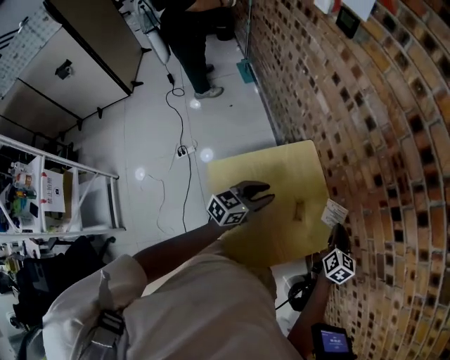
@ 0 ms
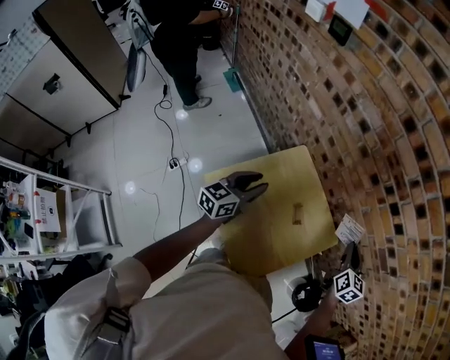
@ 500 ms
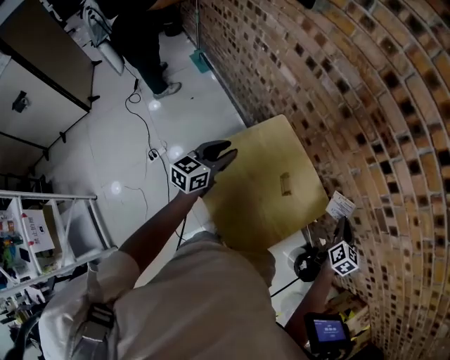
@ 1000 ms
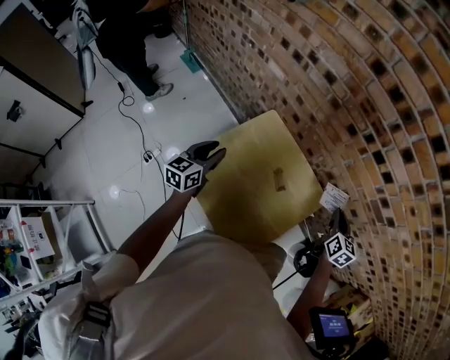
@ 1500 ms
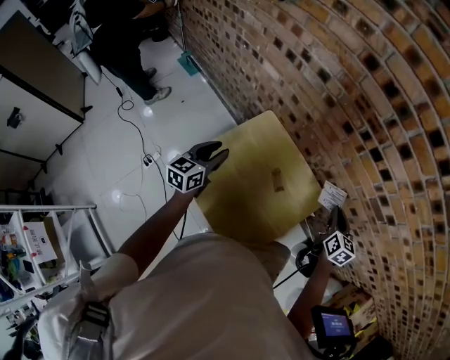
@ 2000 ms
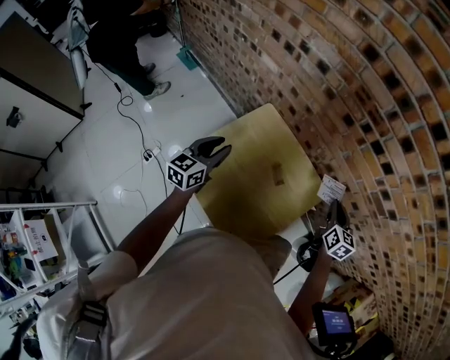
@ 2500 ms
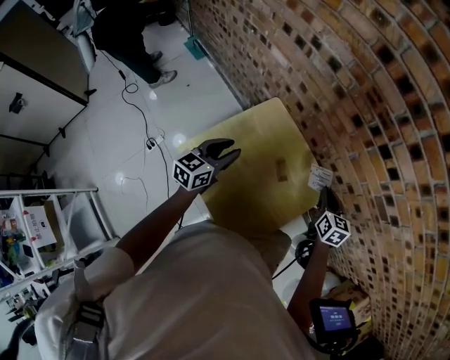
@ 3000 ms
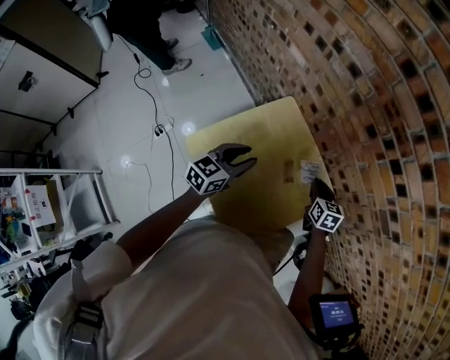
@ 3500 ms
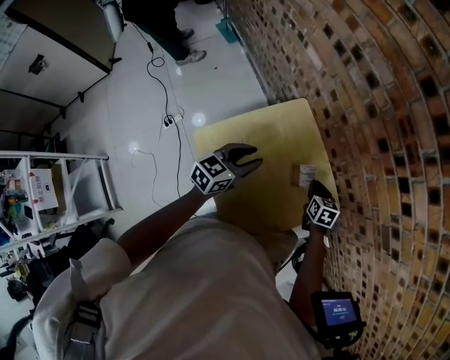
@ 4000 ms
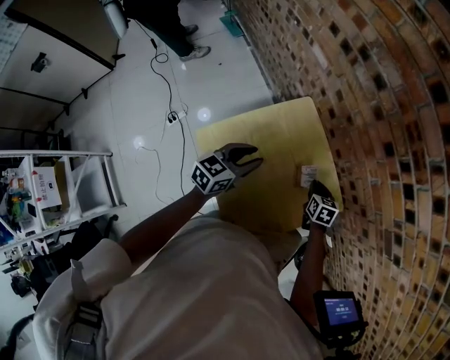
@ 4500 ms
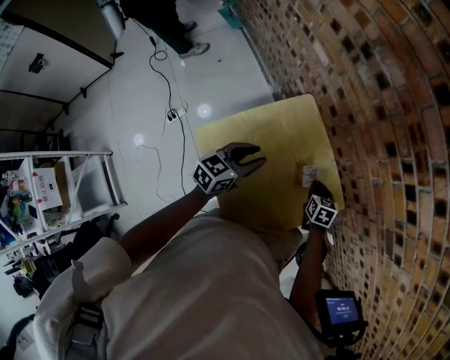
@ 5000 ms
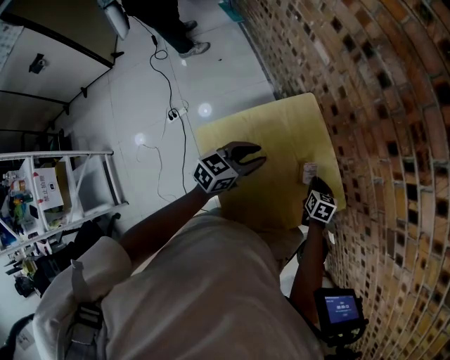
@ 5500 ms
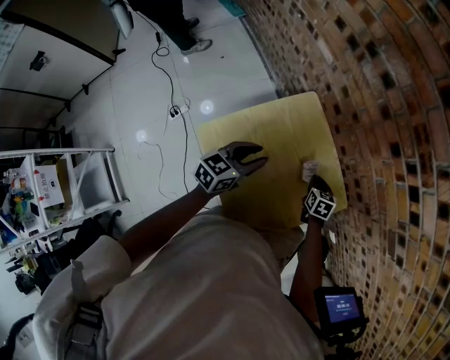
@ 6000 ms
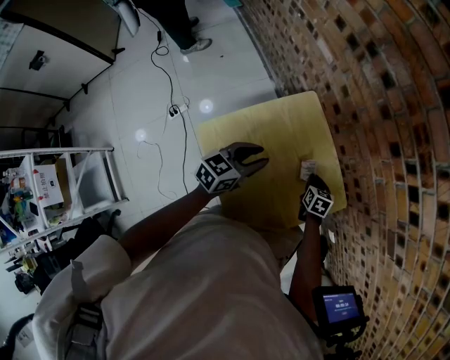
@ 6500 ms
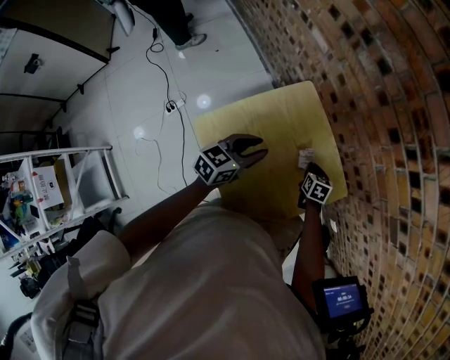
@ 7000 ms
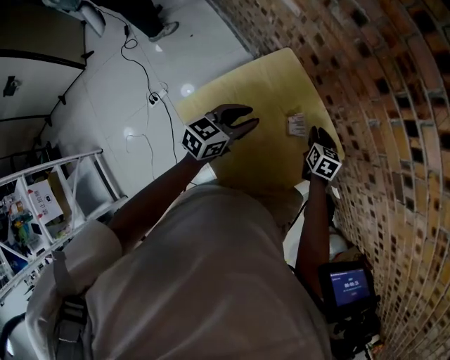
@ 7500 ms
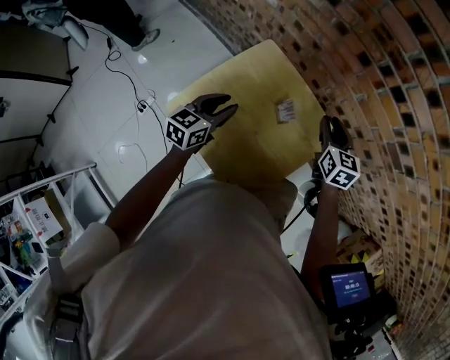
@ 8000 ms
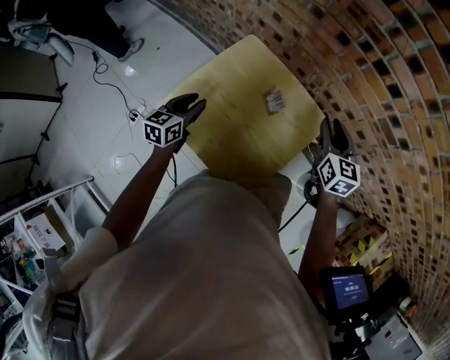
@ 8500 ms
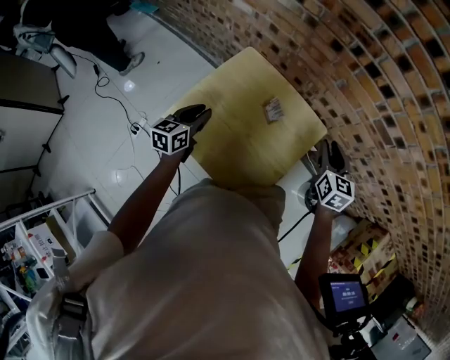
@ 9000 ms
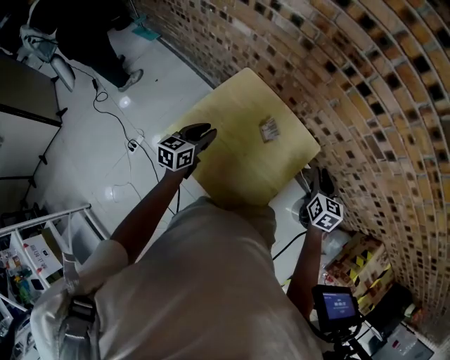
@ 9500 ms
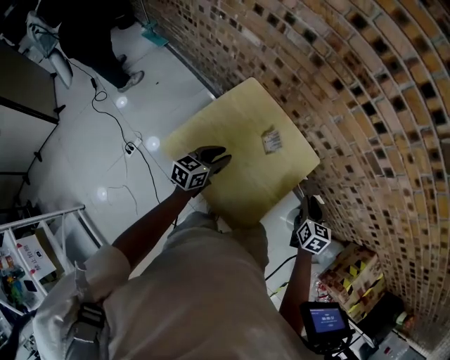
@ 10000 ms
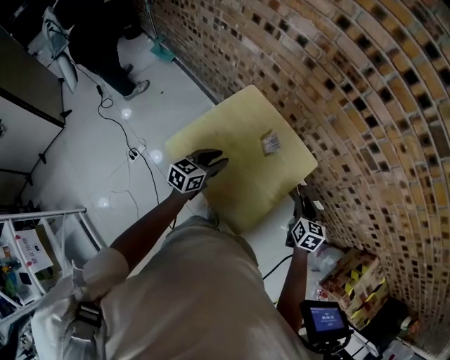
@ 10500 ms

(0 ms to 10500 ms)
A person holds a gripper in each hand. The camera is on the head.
0 ms - 2000 ms: The right gripper moves to the right, about 10 cm; the left gripper is displaced to the left by approximately 10 cm.
2000 ms - 4000 ms: The left gripper shifts roughly 5 cm to the right; the right gripper heads to the left and downward, covering roughly 20 cm, and turns by about 30 degrees.
4000 ms - 6500 ms: The right gripper is displaced downward by approximately 5 cm.
6500 ms - 8500 ms: The left gripper heads to the left, covering about 5 cm. Meanwhile the right gripper shifts approximately 25 cm upward, turns by approximately 30 degrees, and opens its fingers.
8500 ms - 10500 ms: The right gripper goes roughly 15 cm backward and downward. The left gripper is displaced to the right and backward by approximately 10 cm.

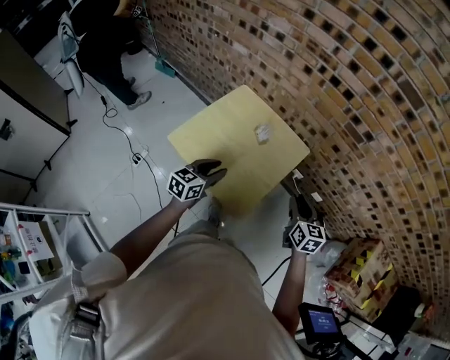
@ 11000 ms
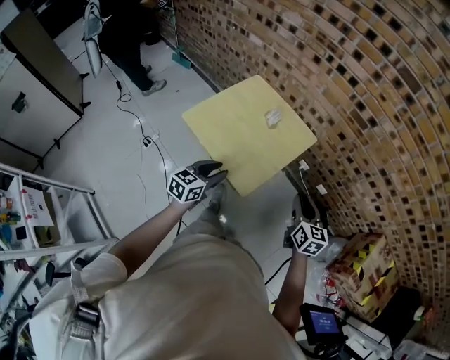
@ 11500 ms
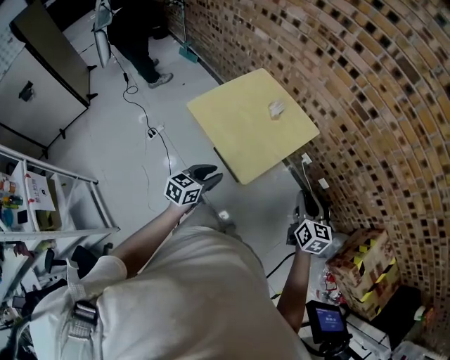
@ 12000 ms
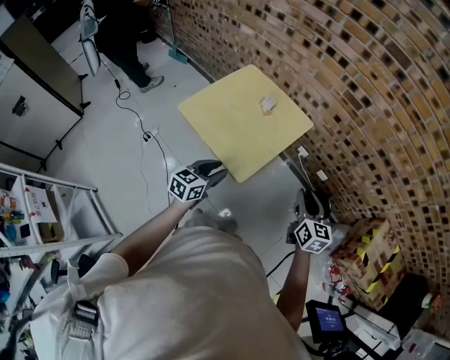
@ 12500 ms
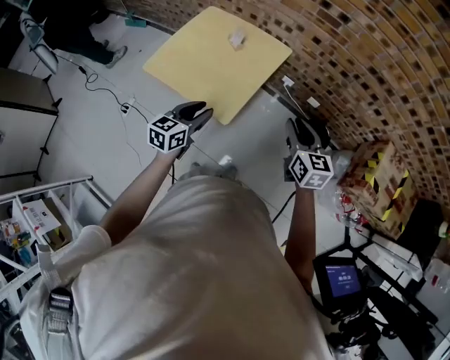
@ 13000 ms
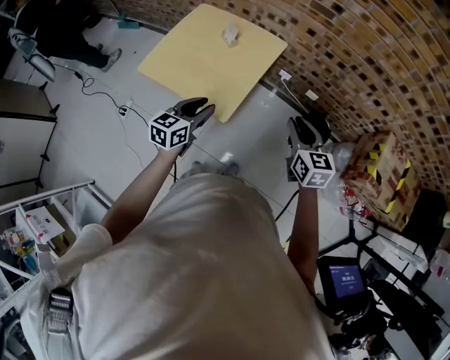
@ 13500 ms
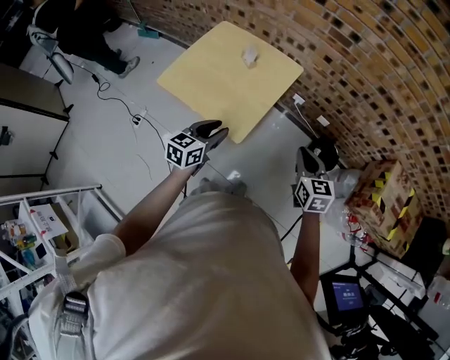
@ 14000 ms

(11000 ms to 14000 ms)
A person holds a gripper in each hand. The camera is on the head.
11000 ms - 12500 ms: The two grippers go approximately 15 cm backward and to the right.
12500 ms - 14000 ms: The right gripper closes up.

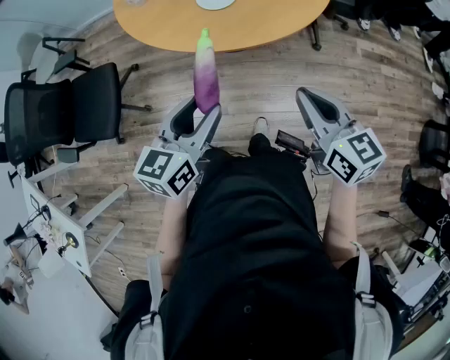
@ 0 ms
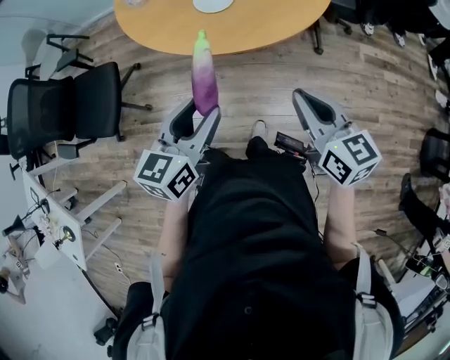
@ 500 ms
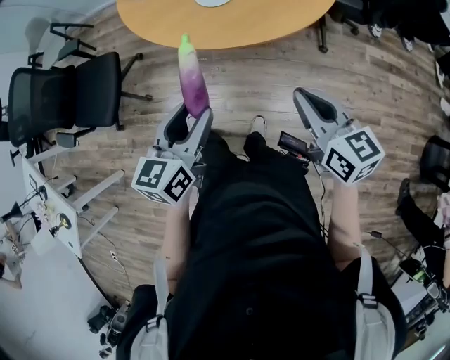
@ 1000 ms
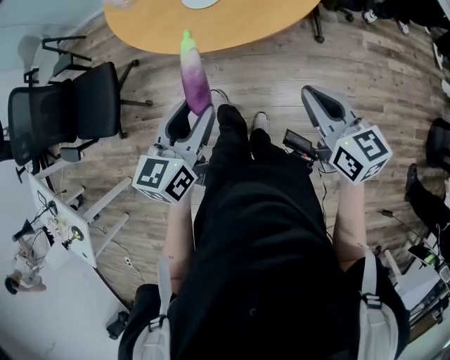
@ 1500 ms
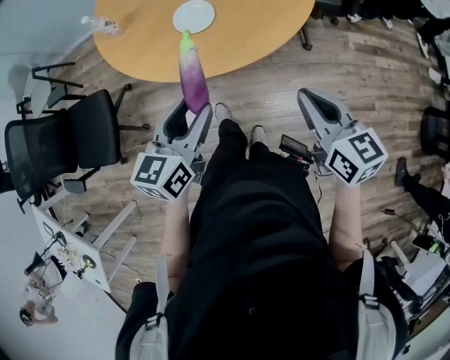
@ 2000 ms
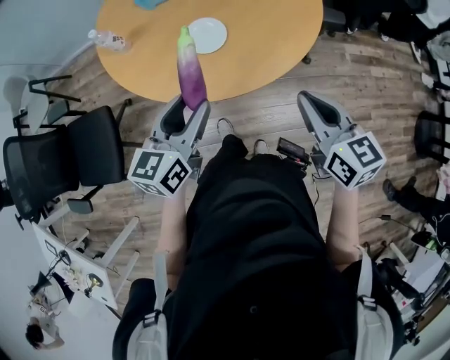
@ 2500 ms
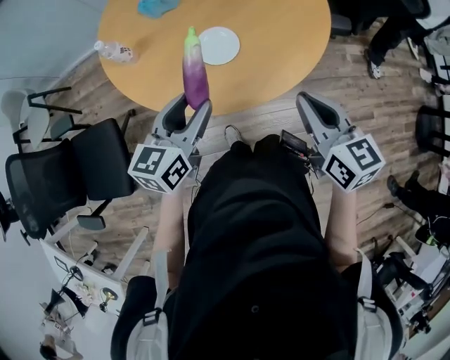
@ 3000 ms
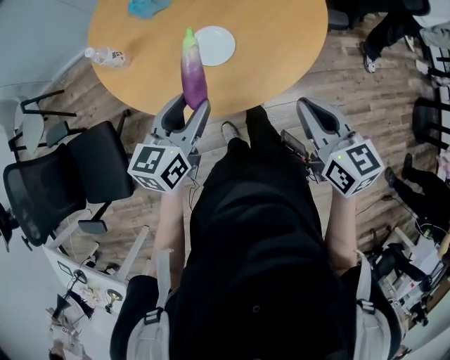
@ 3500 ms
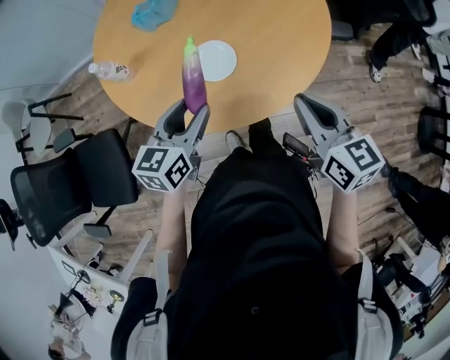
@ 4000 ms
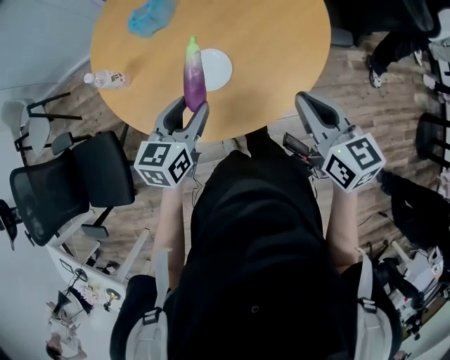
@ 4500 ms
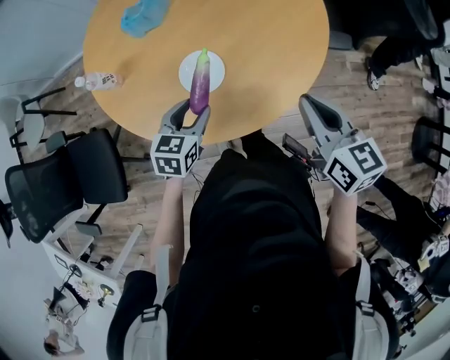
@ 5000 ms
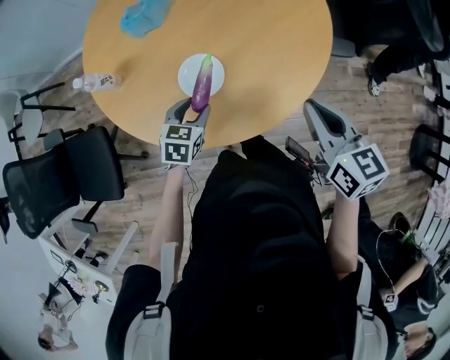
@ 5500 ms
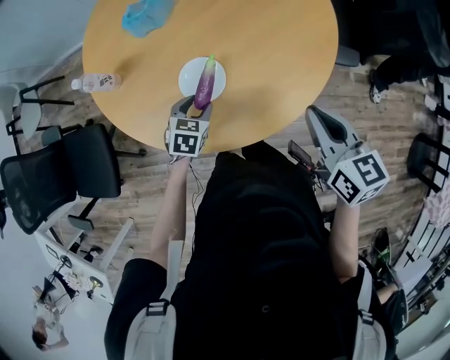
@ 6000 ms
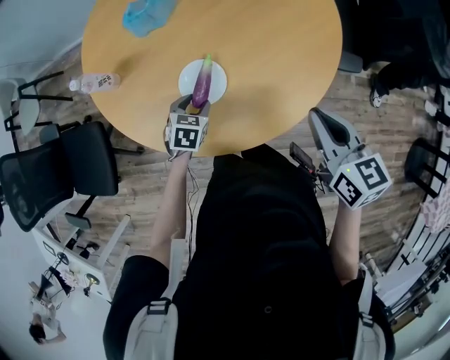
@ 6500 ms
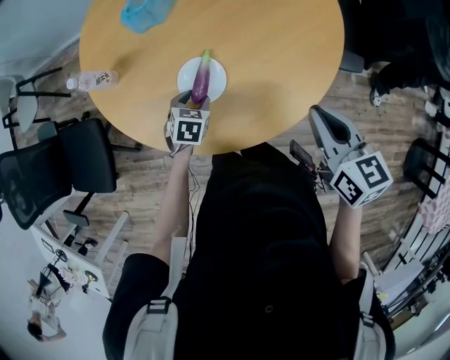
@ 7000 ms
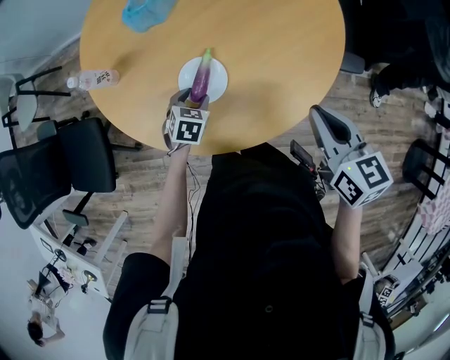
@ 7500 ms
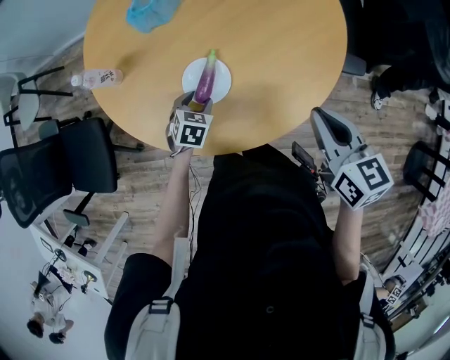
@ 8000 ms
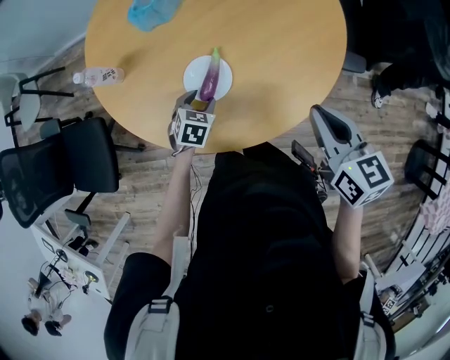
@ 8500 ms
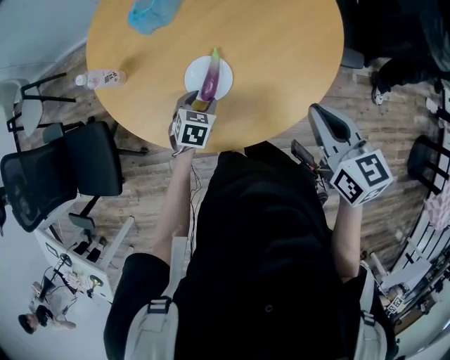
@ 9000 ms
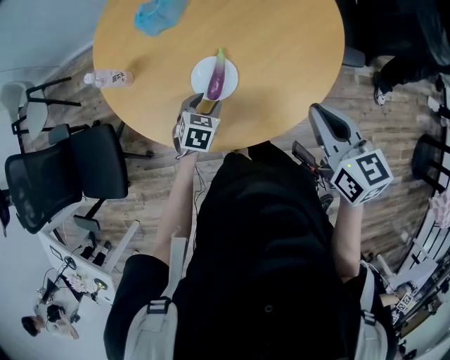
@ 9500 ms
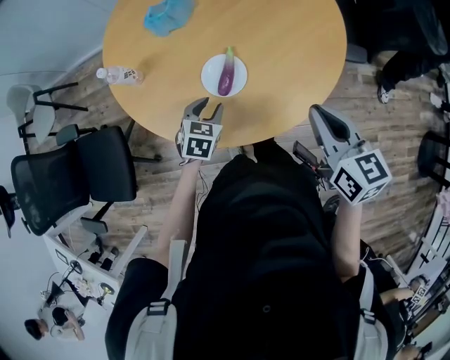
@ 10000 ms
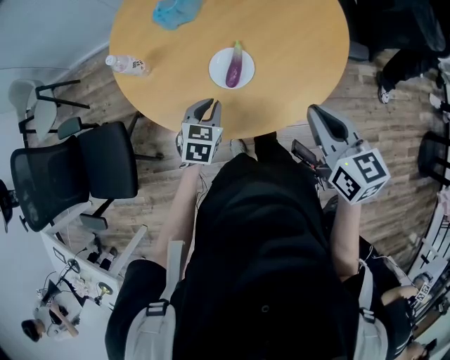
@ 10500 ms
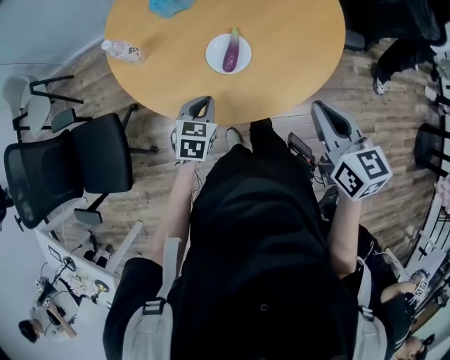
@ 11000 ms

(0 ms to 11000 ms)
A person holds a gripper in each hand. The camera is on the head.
0 ms - 2000 ms: The left gripper shifts approximately 10 cm forward. Meanwhile the right gripper moves forward and to the right, approximately 10 cm.
2000 ms - 3500 ms: The right gripper shifts roughly 15 cm to the left and forward. The left gripper heads forward and to the left, covering approximately 20 cm.
3500 ms - 5500 ms: The left gripper heads downward, forward and to the right, covering some 20 cm, and changes its angle by about 30 degrees, while the right gripper heads forward and to the right, covering roughly 20 cm.
5500 ms - 7500 ms: The left gripper is displaced downward by approximately 5 cm.
7500 ms - 9000 ms: There are only small adjustments of the grippers.
9000 ms - 11000 ms: The right gripper travels backward and to the left by some 15 cm. The left gripper shifts roughly 15 cm backward, upward and to the left, and closes up.

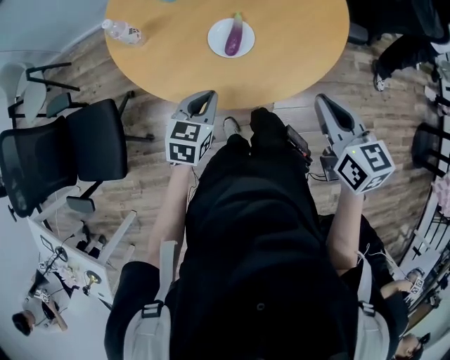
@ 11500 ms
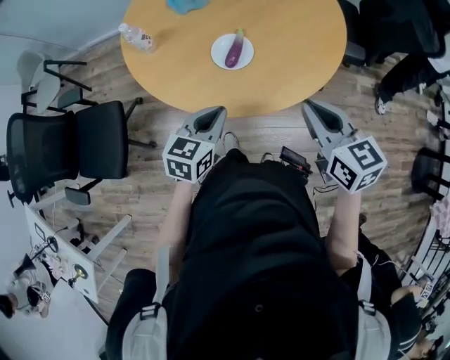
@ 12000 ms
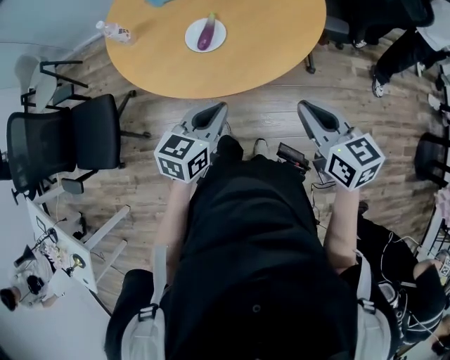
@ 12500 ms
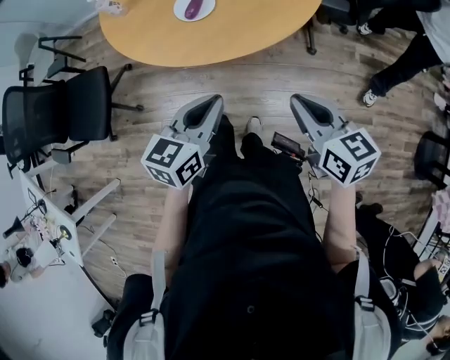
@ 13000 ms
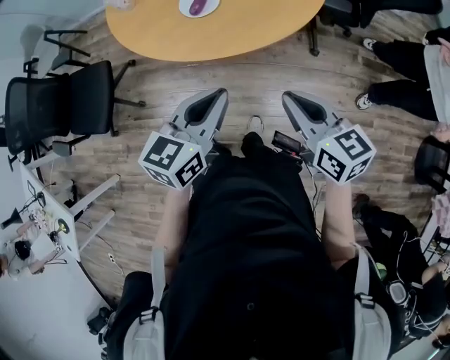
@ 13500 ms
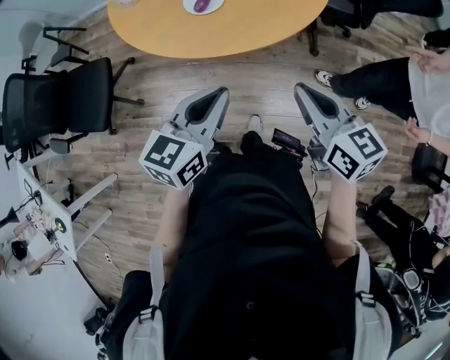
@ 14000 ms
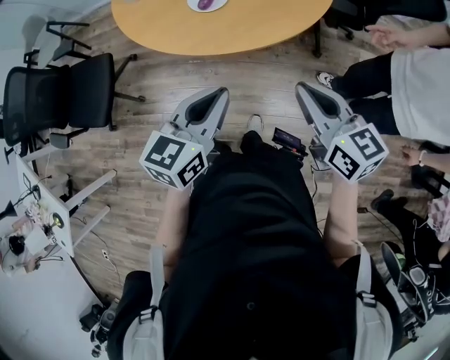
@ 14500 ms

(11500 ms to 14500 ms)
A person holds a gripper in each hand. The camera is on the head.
11500 ms - 13000 ms: The left gripper goes about 30 cm to the right, backward and upward; the right gripper is displaced backward and to the right by roughly 20 cm.
13000 ms - 14500 ms: The grippers make only small movements.
